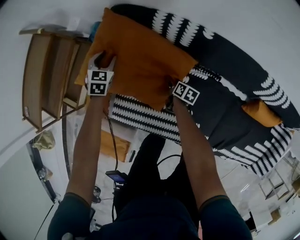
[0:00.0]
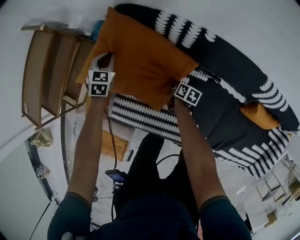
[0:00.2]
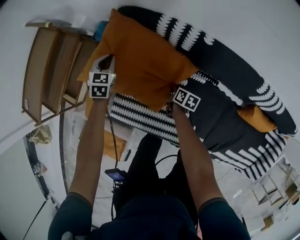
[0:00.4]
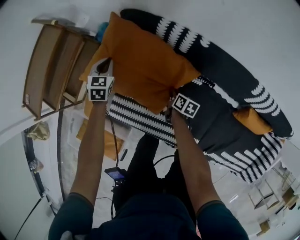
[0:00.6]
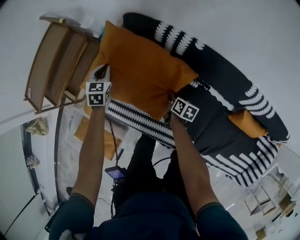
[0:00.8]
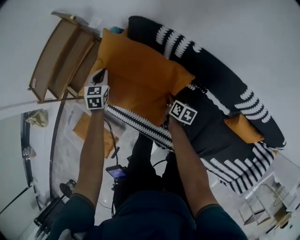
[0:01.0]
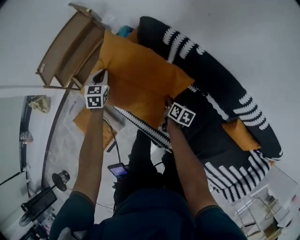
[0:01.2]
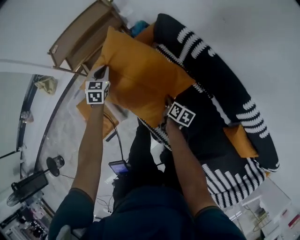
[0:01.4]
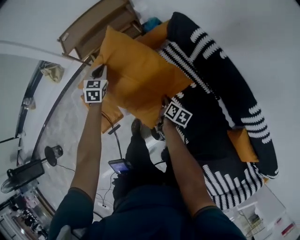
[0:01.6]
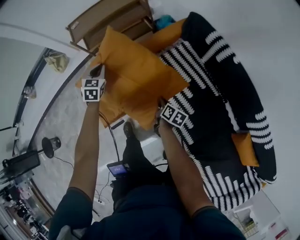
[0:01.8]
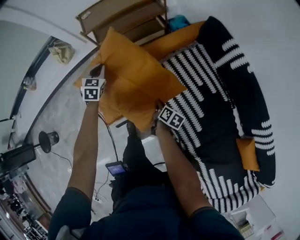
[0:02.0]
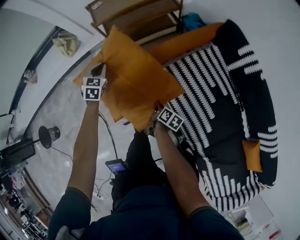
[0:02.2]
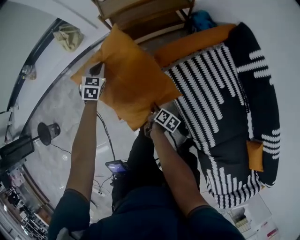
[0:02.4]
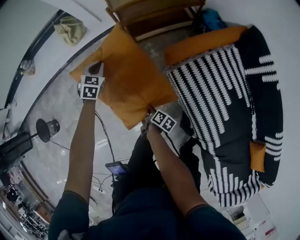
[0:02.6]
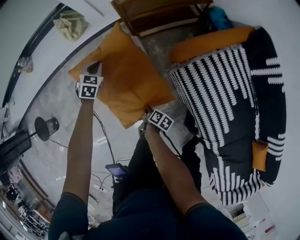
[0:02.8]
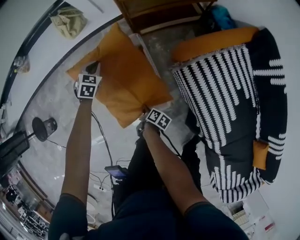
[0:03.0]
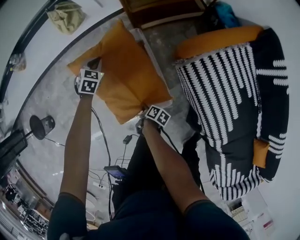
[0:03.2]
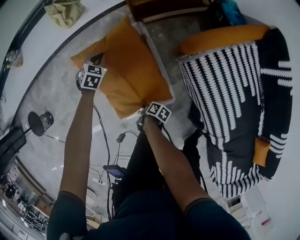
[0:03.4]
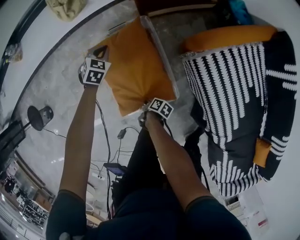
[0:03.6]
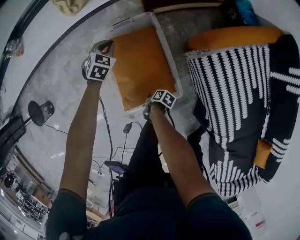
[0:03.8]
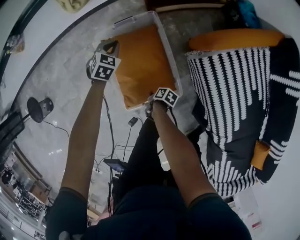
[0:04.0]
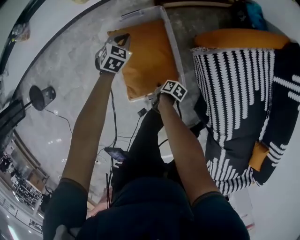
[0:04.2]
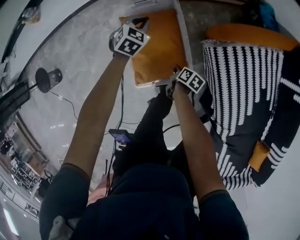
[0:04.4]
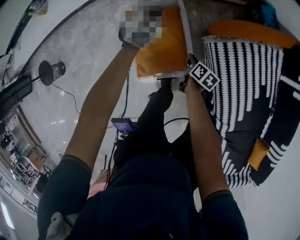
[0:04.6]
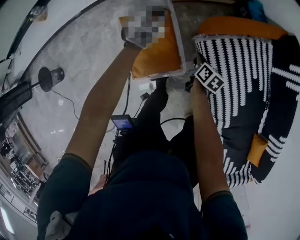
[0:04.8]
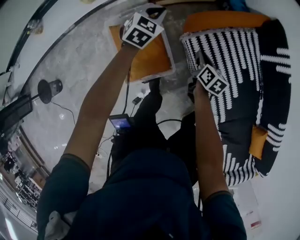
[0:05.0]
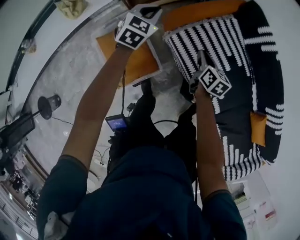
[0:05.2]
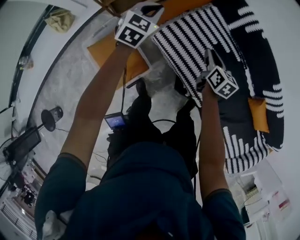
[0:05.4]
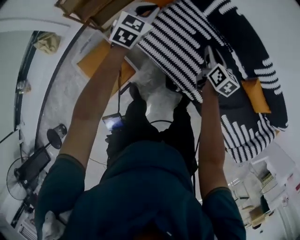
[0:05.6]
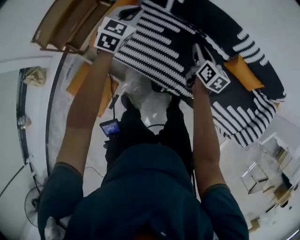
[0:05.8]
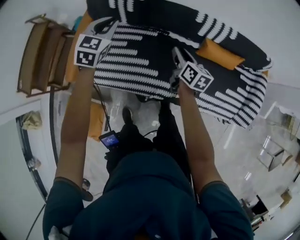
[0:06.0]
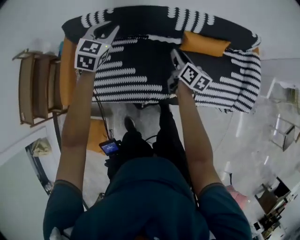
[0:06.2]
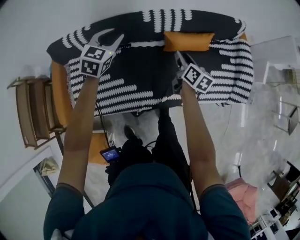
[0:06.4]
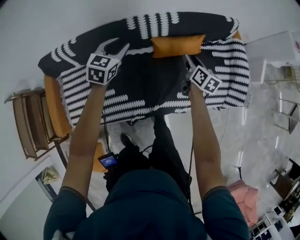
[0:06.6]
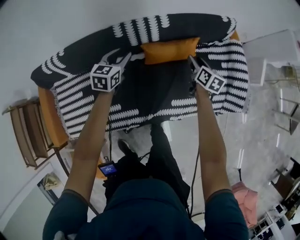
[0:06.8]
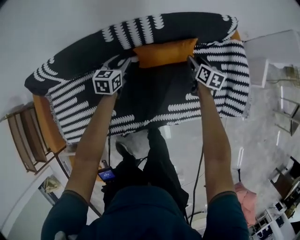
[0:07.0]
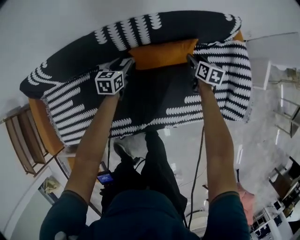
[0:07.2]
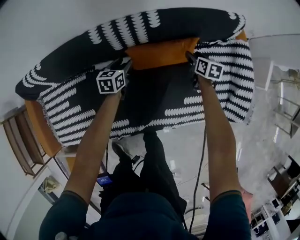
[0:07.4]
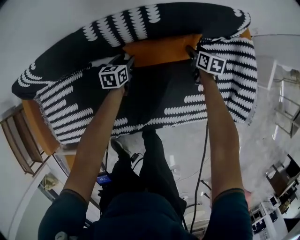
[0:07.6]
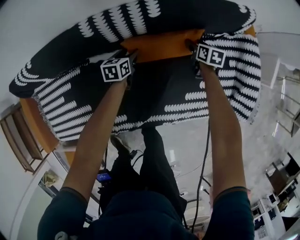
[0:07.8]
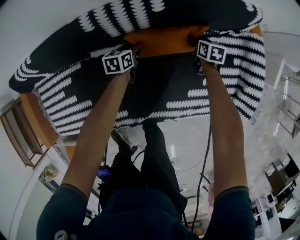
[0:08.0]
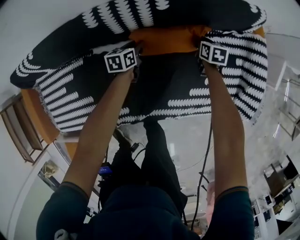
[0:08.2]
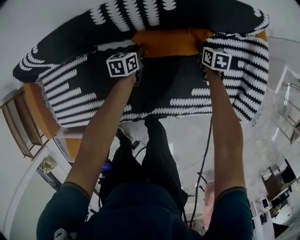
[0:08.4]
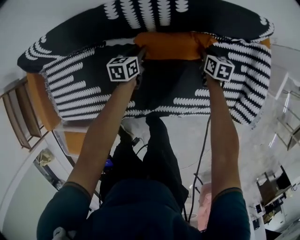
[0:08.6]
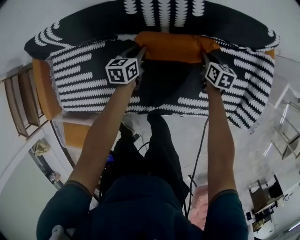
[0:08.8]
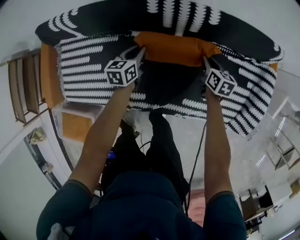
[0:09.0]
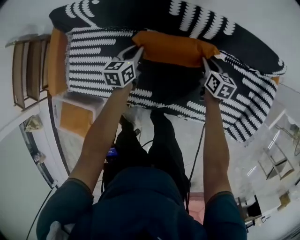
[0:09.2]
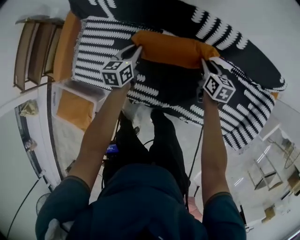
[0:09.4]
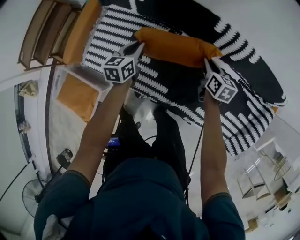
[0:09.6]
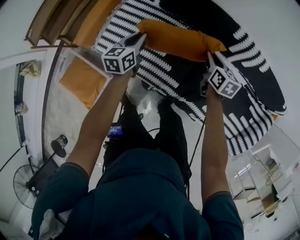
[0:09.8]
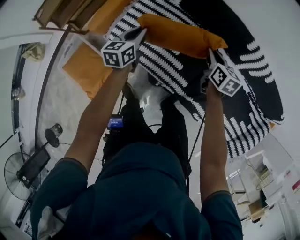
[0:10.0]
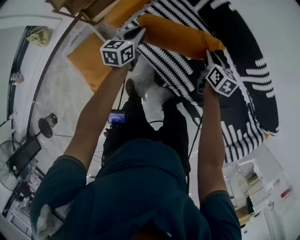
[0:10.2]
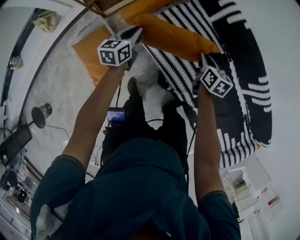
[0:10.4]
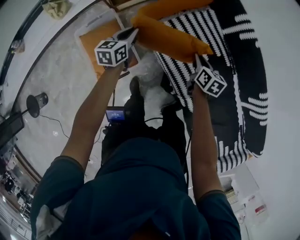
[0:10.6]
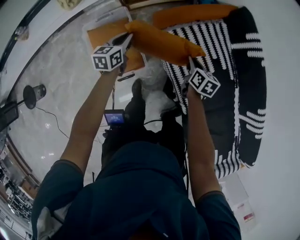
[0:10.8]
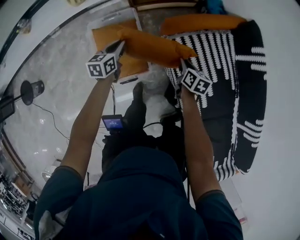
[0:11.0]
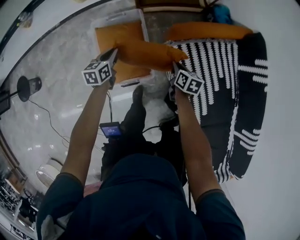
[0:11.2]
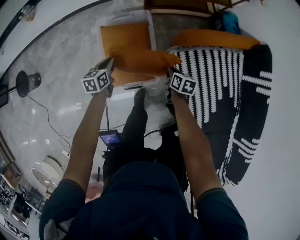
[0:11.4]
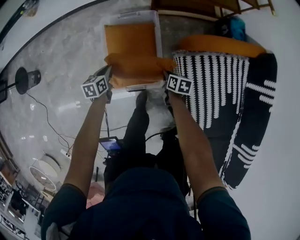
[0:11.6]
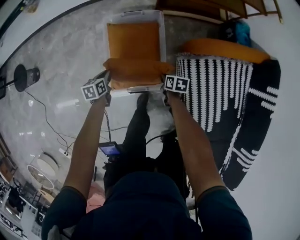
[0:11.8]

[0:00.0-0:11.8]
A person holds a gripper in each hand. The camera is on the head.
0:00.0 to 0:01.4: The left gripper changes place by some 35 cm, swivels approximately 30 degrees, and closes; the right gripper is displaced upward by some 20 cm, swivels approximately 30 degrees, and closes its fingers.
0:01.4 to 0:03.0: Both grippers are carried roughly 60 cm. The right gripper rotates about 30 degrees; the left gripper rotates some 20 degrees.
0:03.0 to 0:04.4: The right gripper moves about 10 cm downward and comes back. The left gripper goes approximately 5 cm to the right.
0:04.4 to 0:06.0: Both grippers are carried roughly 80 cm. The left gripper swivels some 60 degrees, while the right gripper swivels some 70 degrees.
0:06.0 to 0:07.4: The pair of grippers is taken some 50 cm. The right gripper turns by some 30 degrees. The left gripper turns by about 40 degrees, and opens.
0:07.4 to 0:08.8: The left gripper travels to the left by approximately 5 cm, travels downward and back again, roughly 10 cm each way, and closes. Meanwhile the right gripper shifts some 10 cm to the left, and closes its fingers.
0:08.8 to 0:10.4: The two grippers travel together, approximately 80 cm. The right gripper changes its angle by roughly 40 degrees. The left gripper swivels approximately 50 degrees.
0:10.4 to 0:11.8: The pair of grippers is taken approximately 50 cm. The left gripper rotates about 50 degrees. Meanwhile the right gripper swivels about 50 degrees.

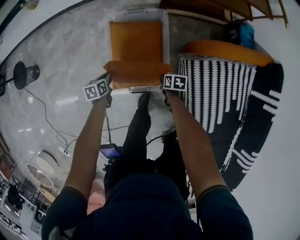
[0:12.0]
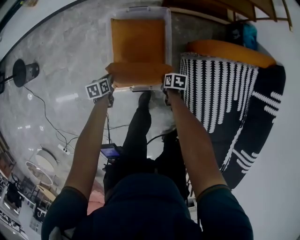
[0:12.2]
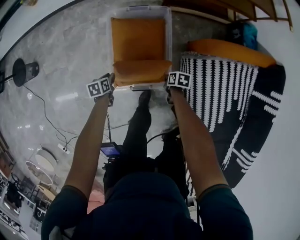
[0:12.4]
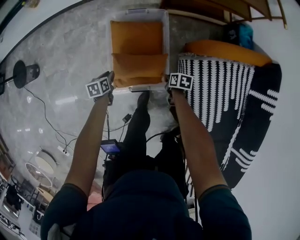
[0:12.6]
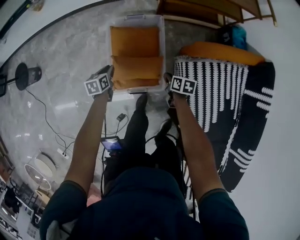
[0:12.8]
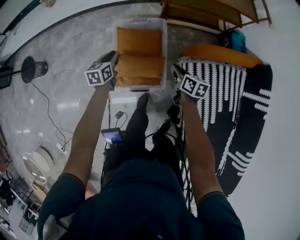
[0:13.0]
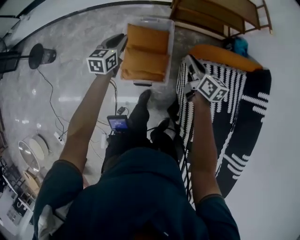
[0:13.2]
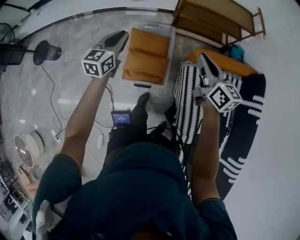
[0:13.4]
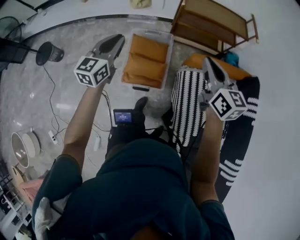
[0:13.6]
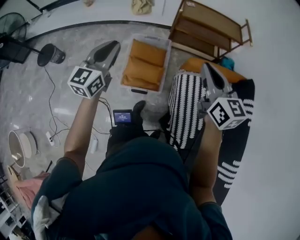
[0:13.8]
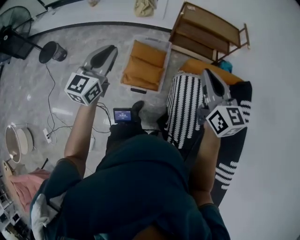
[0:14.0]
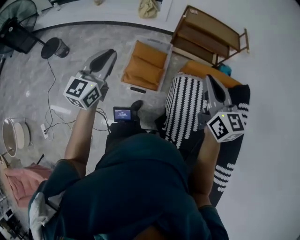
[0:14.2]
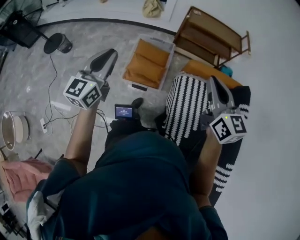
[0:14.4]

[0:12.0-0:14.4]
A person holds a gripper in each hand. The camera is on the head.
0:12.0 to 0:13.2: Both grippers move upward, roughly 35 cm. The right gripper tilts its fingers approximately 40 degrees upward; the left gripper rotates about 40 degrees.
0:13.2 to 0:14.4: The right gripper heads upward and backward, covering approximately 40 cm, and changes its angle by roughly 40 degrees; the left gripper heads backward and upward, covering some 50 cm, and turns by some 30 degrees.

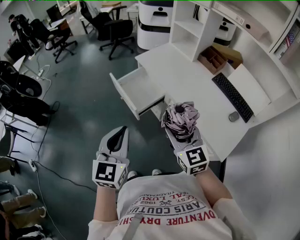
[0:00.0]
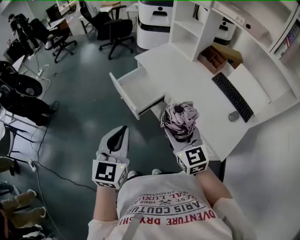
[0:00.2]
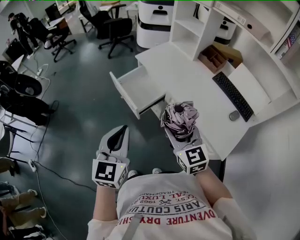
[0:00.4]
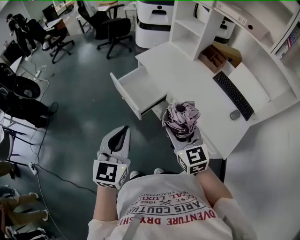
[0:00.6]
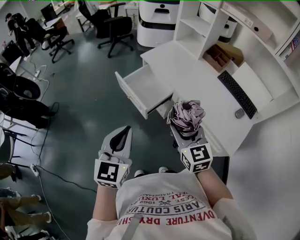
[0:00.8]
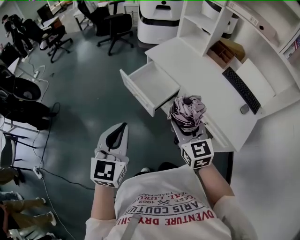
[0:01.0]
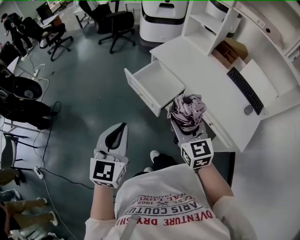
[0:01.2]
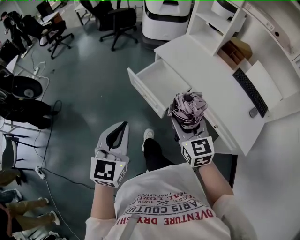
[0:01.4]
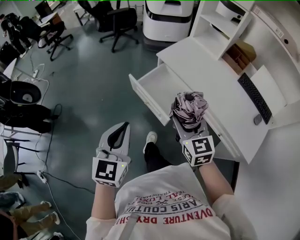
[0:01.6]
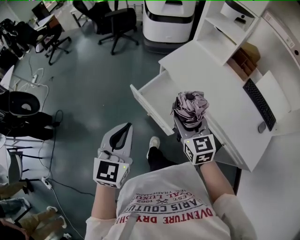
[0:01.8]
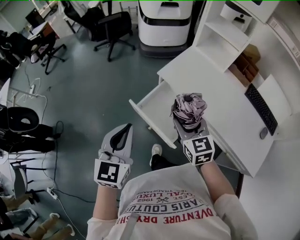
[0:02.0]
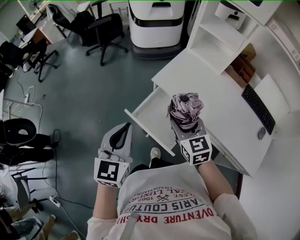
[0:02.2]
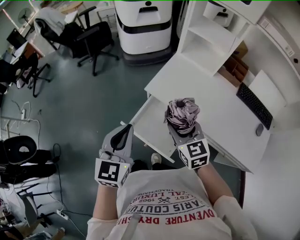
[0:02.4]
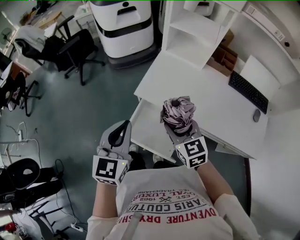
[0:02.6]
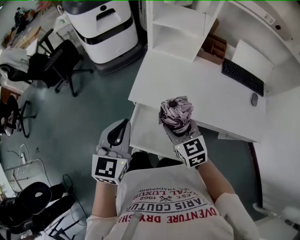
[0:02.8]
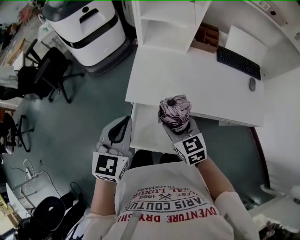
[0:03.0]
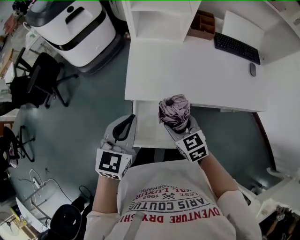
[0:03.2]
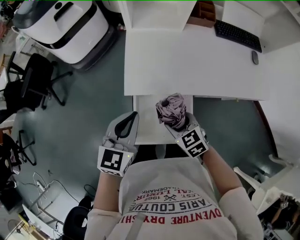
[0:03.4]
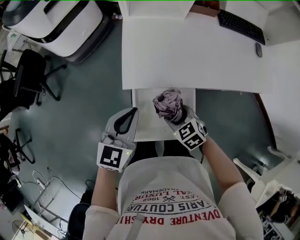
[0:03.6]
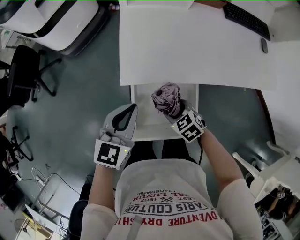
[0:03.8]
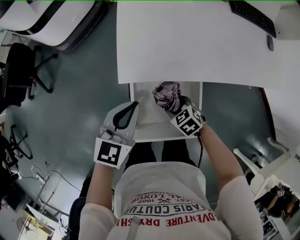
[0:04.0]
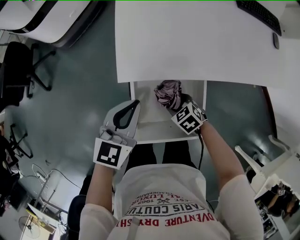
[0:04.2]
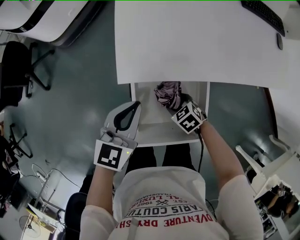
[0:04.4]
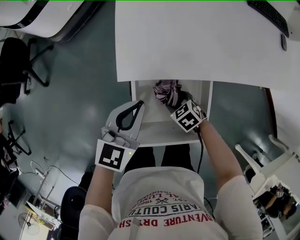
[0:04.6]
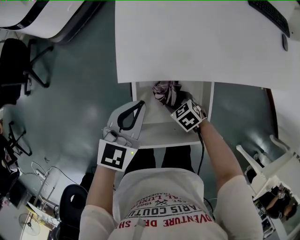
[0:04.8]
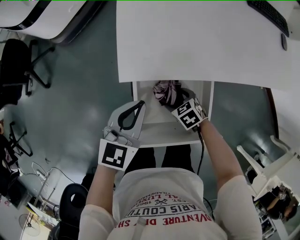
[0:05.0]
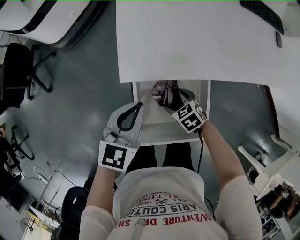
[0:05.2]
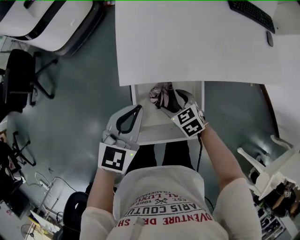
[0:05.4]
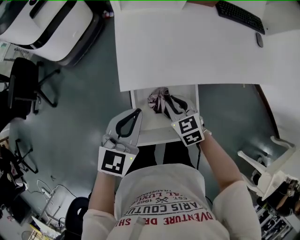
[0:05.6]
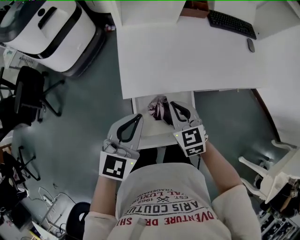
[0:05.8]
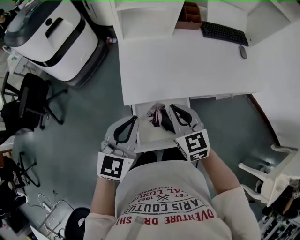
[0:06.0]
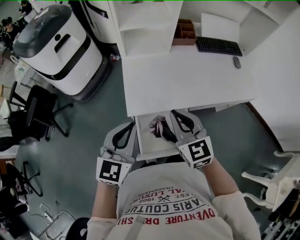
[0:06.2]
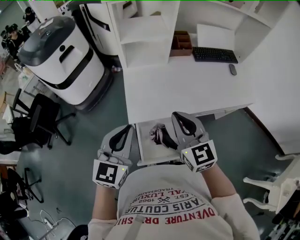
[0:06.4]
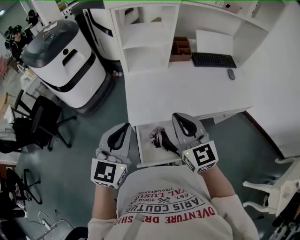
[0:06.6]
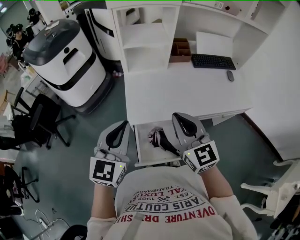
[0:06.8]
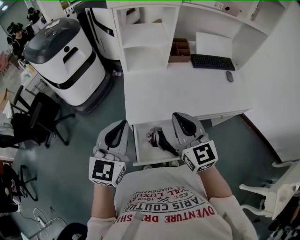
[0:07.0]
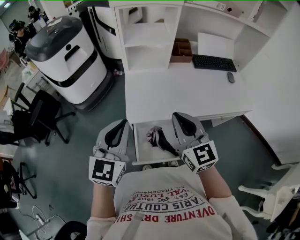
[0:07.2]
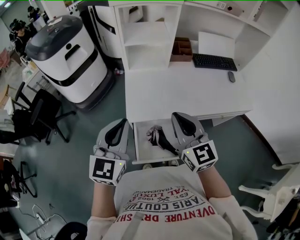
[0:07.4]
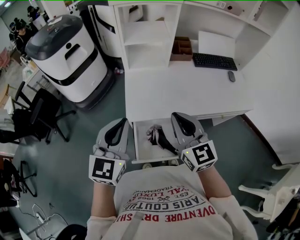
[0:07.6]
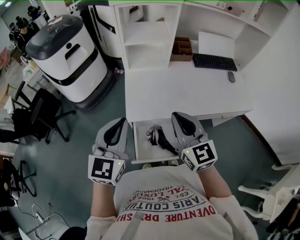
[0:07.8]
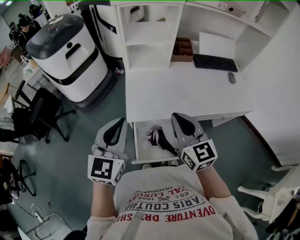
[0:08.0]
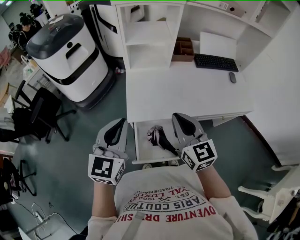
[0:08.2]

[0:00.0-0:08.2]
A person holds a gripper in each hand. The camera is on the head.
0:00.0 to 0:01.6: Both grippers move to the left and forward, some 20 cm.
0:01.6 to 0:03.2: The left gripper changes place by roughly 40 cm, and changes its angle by some 50 degrees; the right gripper moves roughly 25 cm, and changes its angle by about 40 degrees.
0:03.2 to 0:05.0: The right gripper moves downward, roughly 30 cm, changes its angle by approximately 30 degrees, and opens. Meanwhile the left gripper heads downward, covering roughly 20 cm.
0:05.0 to 0:06.6: The left gripper heads upward, covering about 30 cm, and rotates some 20 degrees. Meanwhile the right gripper heads upward, covering approximately 50 cm, angles its fingers upward, by roughly 60 degrees, and closes its fingers.
0:06.6 to 0:08.2: The grippers move only a little.
